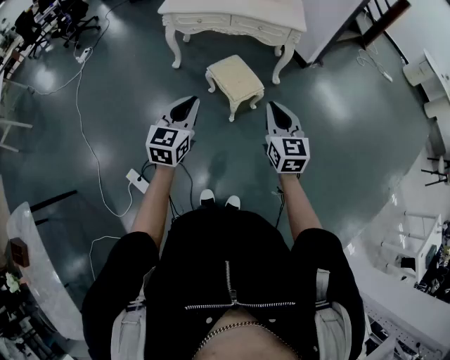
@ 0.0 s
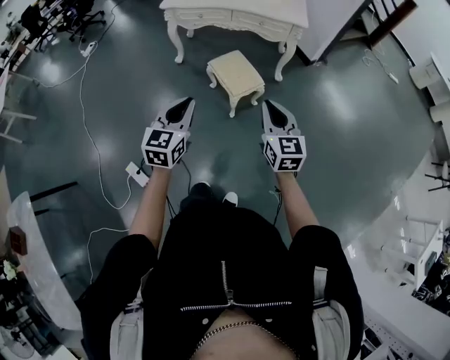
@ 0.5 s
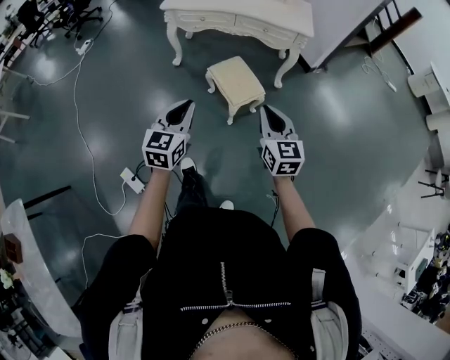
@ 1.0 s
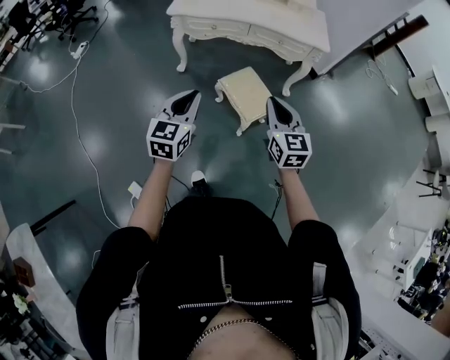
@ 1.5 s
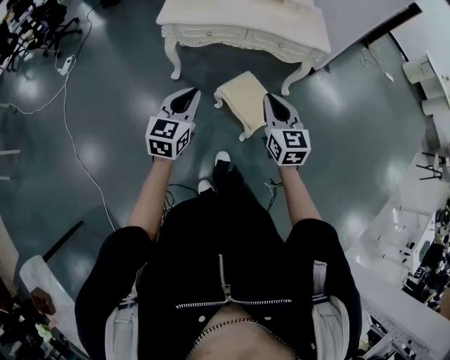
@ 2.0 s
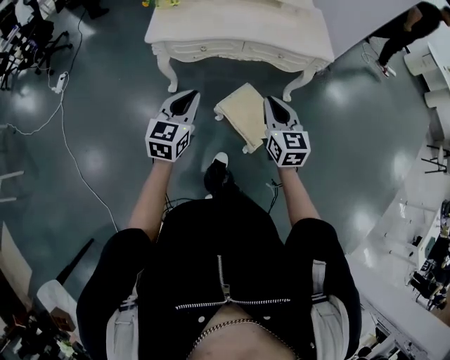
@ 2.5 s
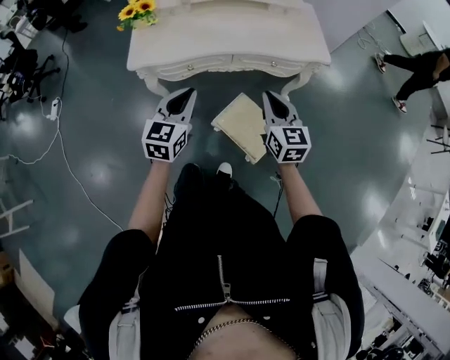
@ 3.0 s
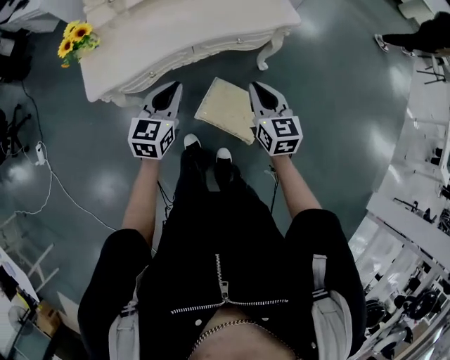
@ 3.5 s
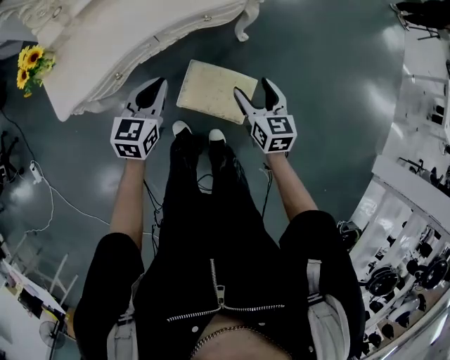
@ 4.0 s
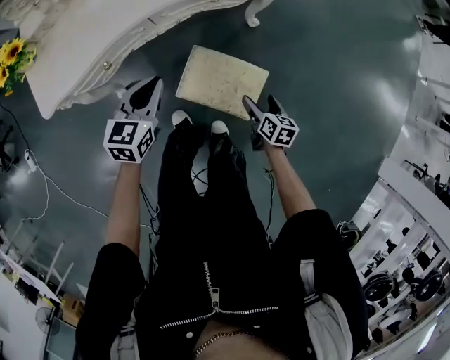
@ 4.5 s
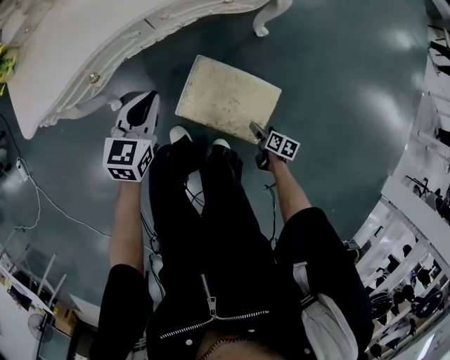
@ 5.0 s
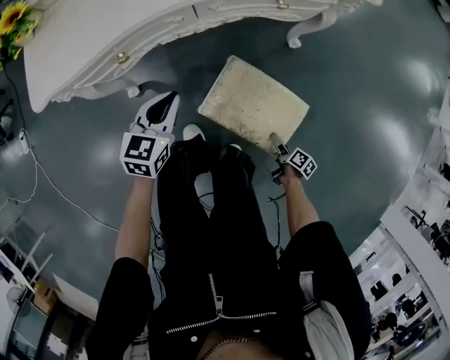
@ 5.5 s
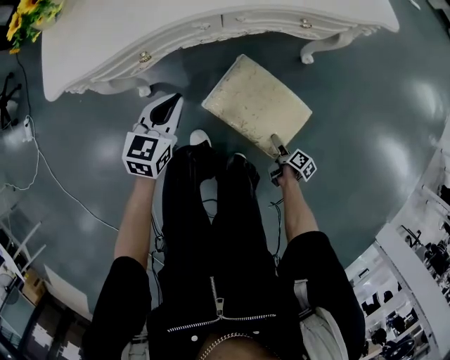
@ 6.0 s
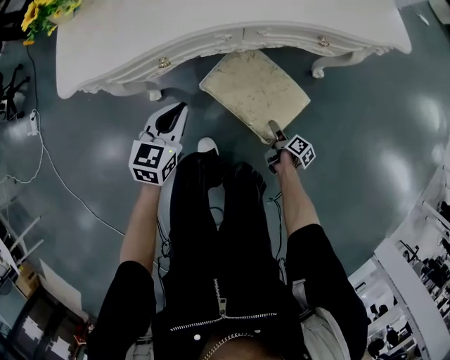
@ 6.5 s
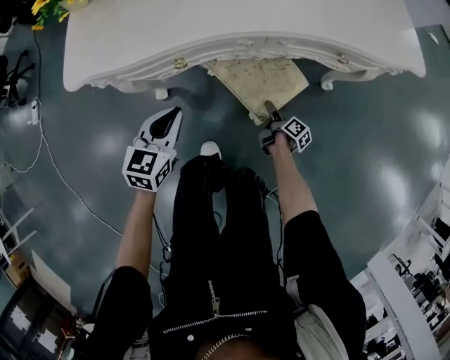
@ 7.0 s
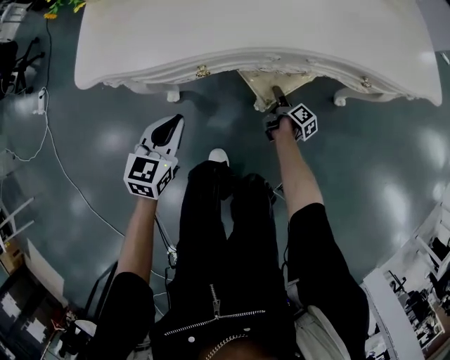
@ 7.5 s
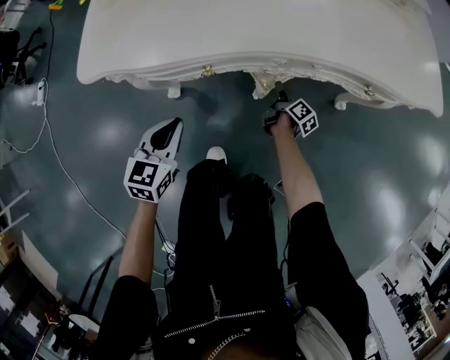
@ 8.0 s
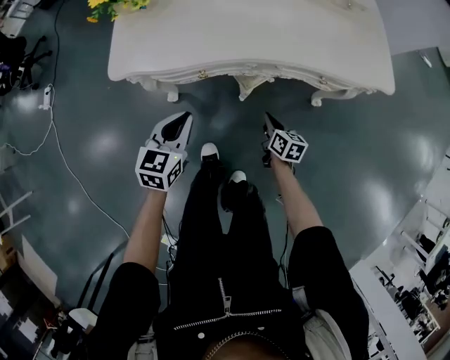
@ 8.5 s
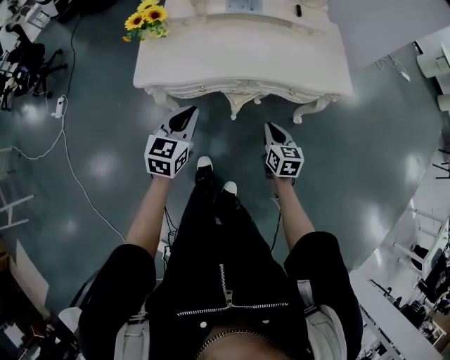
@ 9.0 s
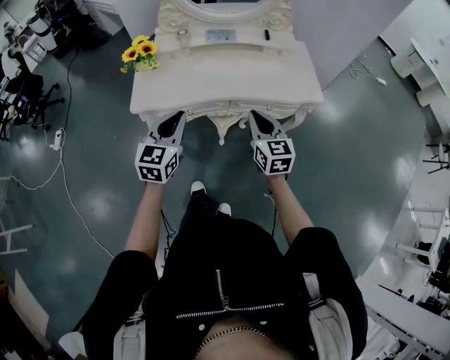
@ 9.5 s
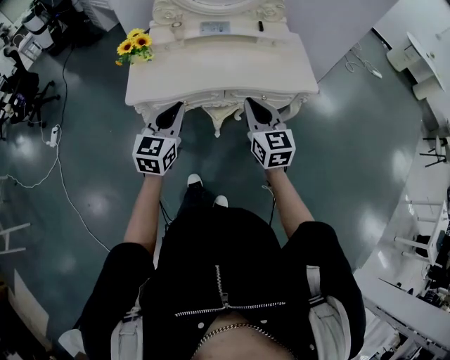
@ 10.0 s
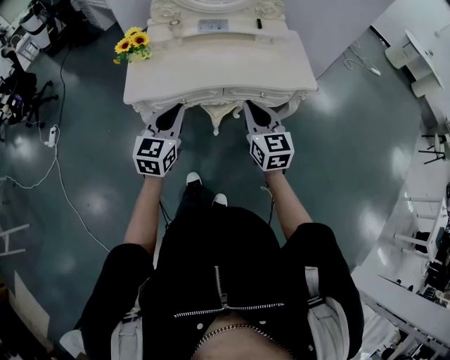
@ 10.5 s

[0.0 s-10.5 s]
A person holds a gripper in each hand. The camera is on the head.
0.0 to 2.0 s: Both grippers move forward and to the left, about 35 cm.
2.0 to 4.0 s: The left gripper shifts by about 40 cm, and changes its angle by approximately 40 degrees; the right gripper changes place by roughly 30 cm, turns by about 40 degrees, and opens its fingers.
4.0 to 6.5 s: The left gripper heads downward and to the left, covering roughly 30 cm, while the right gripper heads downward, covering roughly 50 cm, and rotates around the line of its fingers by about 60 degrees, clockwise from behind.
6.5 to 8.5 s: The right gripper is displaced upward, to the left and forward by about 30 cm, twists about 50 degrees counterclockwise, seen from behind, and closes. The left gripper shifts approximately 15 cm upward.
8.5 to 10.5 s: The left gripper shifts some 30 cm upward. The right gripper is displaced upward by some 50 cm, and turns by roughly 50 degrees.

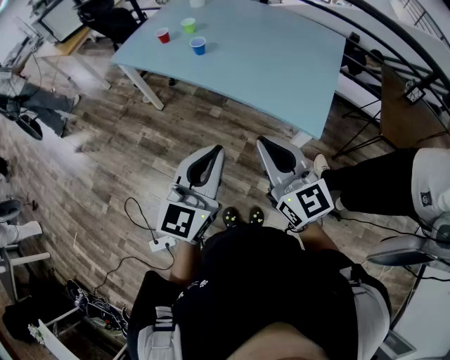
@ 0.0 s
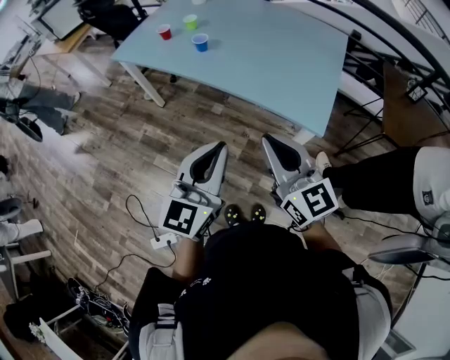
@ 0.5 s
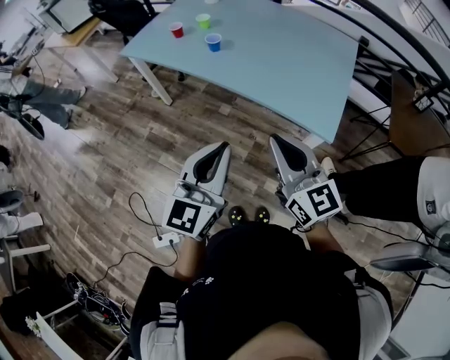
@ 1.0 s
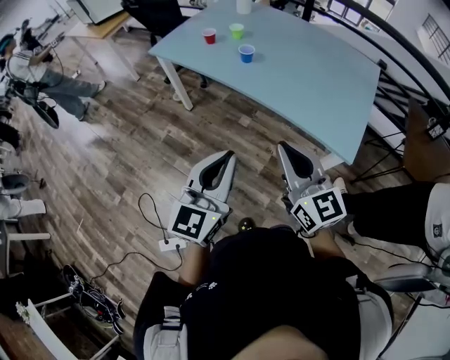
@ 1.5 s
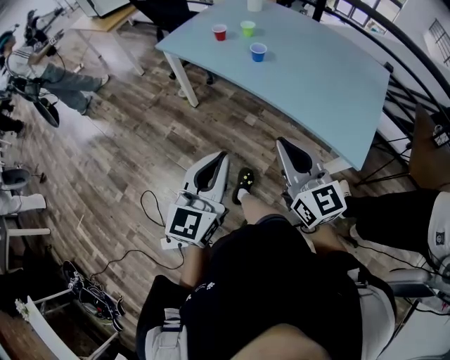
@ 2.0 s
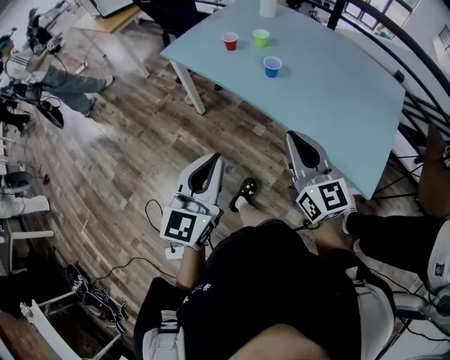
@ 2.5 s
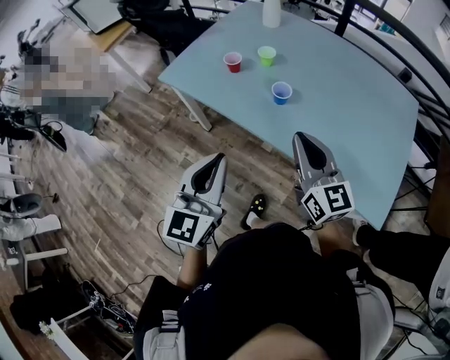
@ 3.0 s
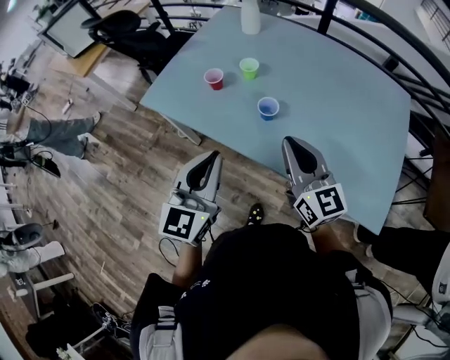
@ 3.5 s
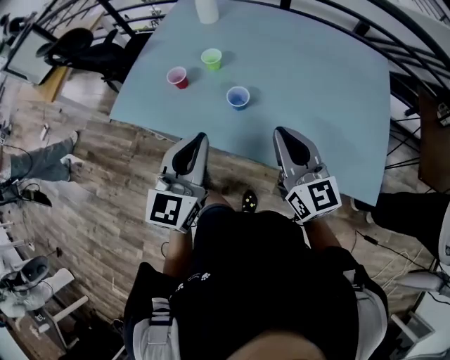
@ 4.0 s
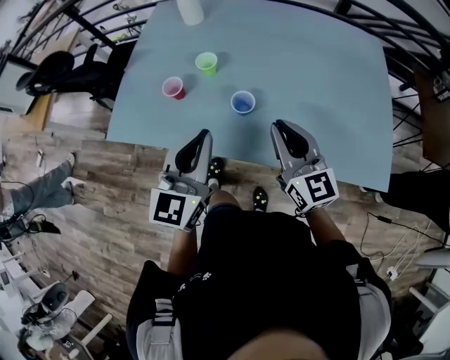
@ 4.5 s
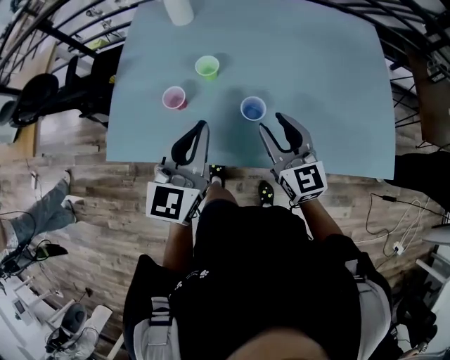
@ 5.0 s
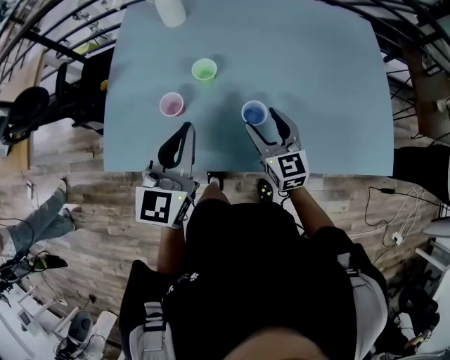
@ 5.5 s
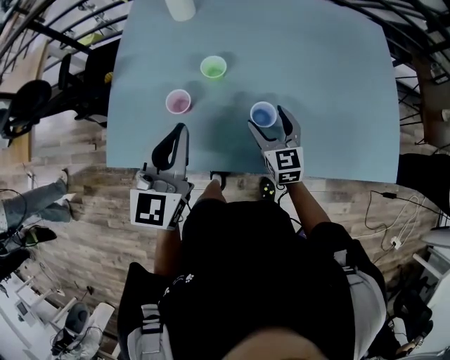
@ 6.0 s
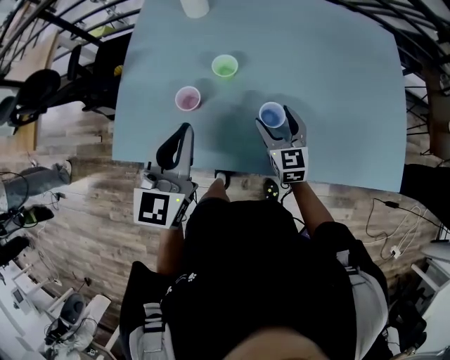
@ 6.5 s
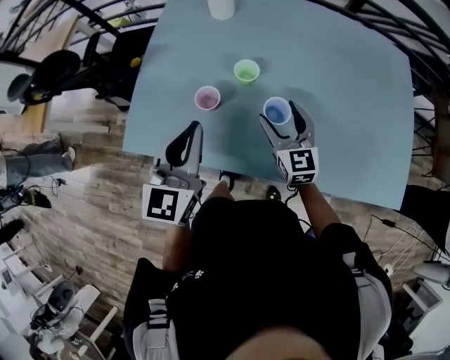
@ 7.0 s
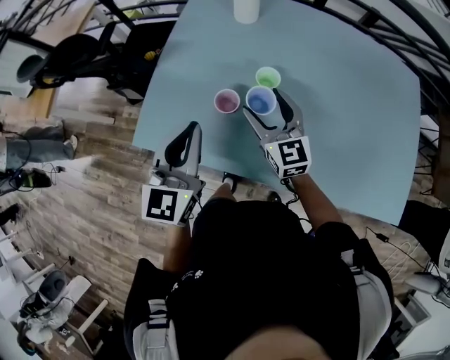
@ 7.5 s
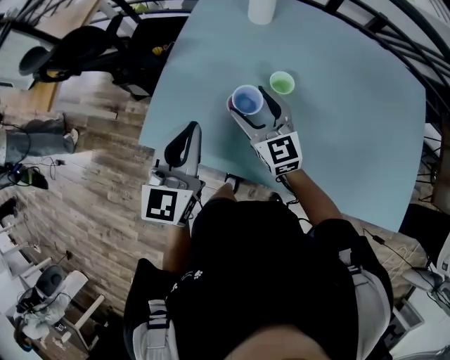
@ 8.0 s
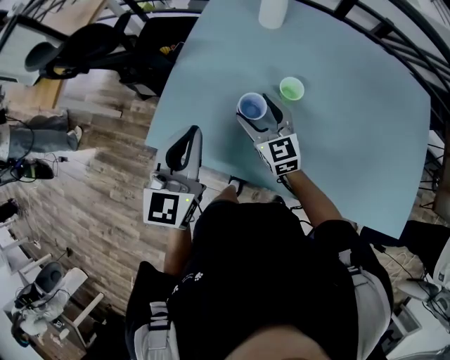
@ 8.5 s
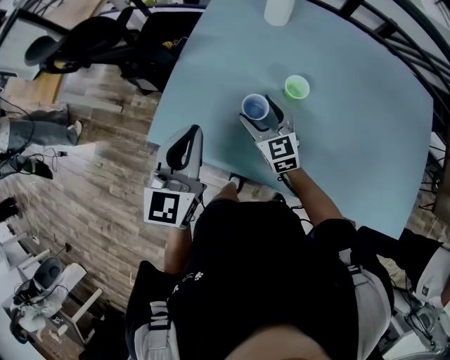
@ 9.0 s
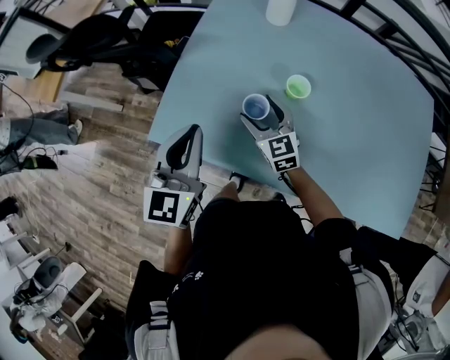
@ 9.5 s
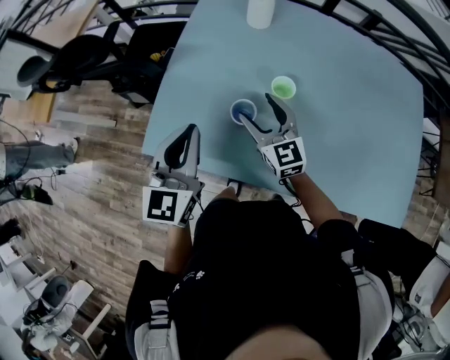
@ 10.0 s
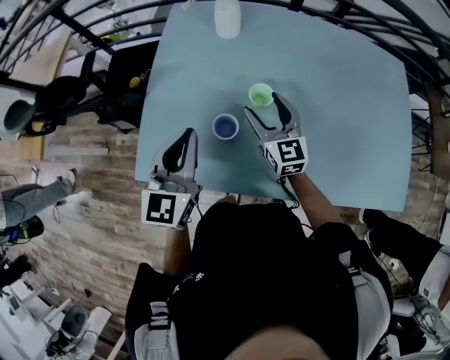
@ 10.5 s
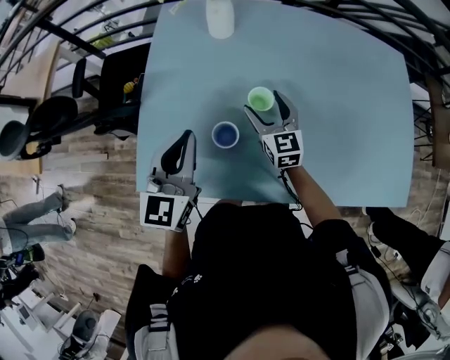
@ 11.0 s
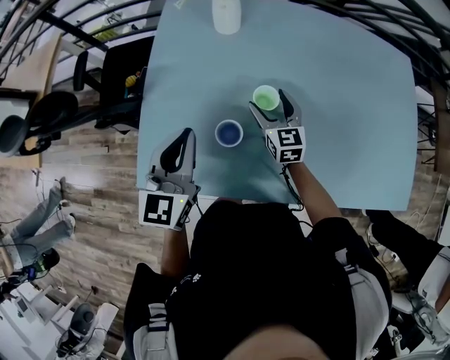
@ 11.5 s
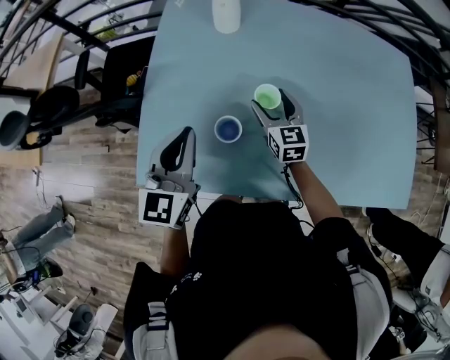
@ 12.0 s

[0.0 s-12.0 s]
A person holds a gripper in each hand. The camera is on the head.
0.0 to 2.0 s: The right gripper goes approximately 15 cm to the left and forward, while the left gripper is displaced to the left by about 15 cm.
2.0 to 4.0 s: The grippers both shift forward by roughly 40 cm. The right gripper swivels roughly 20 degrees.
4.0 to 6.0 s: The left gripper moves forward and to the left, about 25 cm; the right gripper moves downward, forward and to the left, approximately 30 cm, swivels some 30 degrees, and opens.
6.0 to 8.0 s: The left gripper heads to the left, covering approximately 15 cm. Meanwhile the right gripper heads to the left and upward, covering about 25 cm, and turns by roughly 30 degrees.
8.0 to 10.0 s: The right gripper moves approximately 10 cm downward and comes back.
10.0 to 12.0 s: The right gripper moves to the right, forward and downward, some 15 cm, and swivels roughly 20 degrees; the left gripper moves forward, some 5 cm.

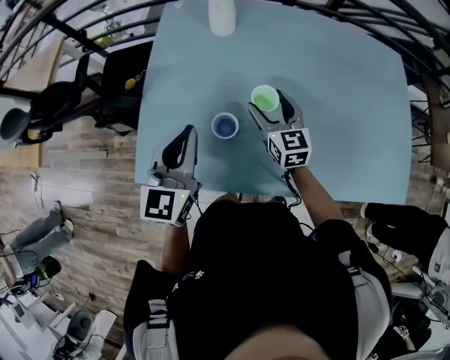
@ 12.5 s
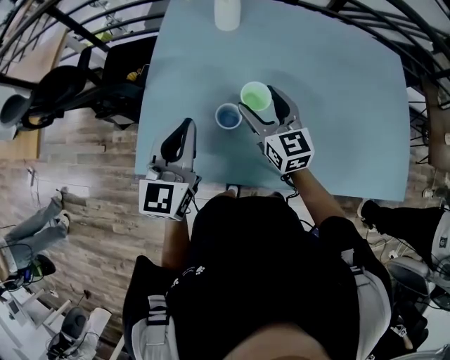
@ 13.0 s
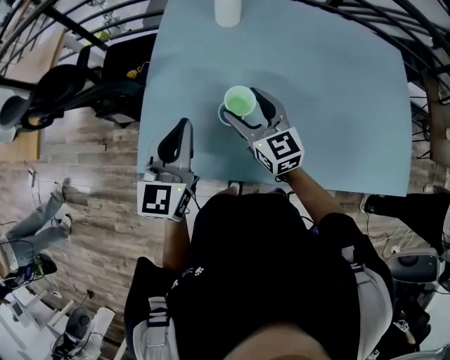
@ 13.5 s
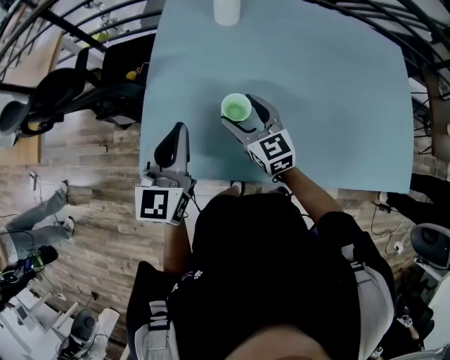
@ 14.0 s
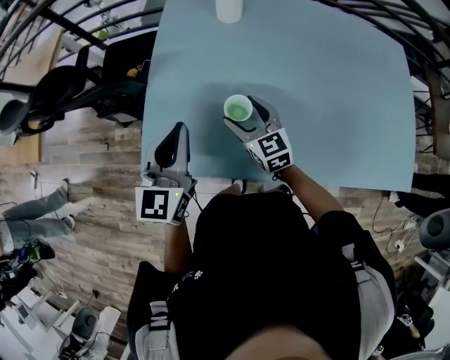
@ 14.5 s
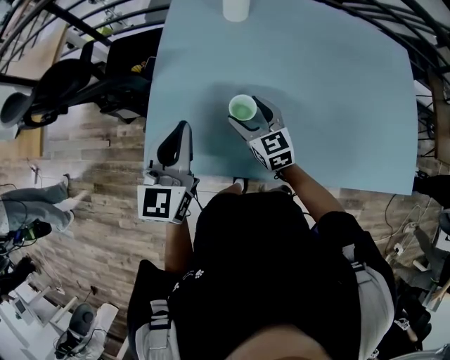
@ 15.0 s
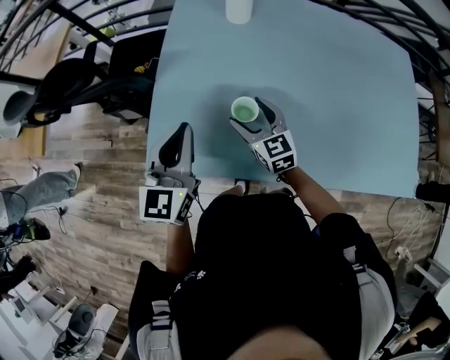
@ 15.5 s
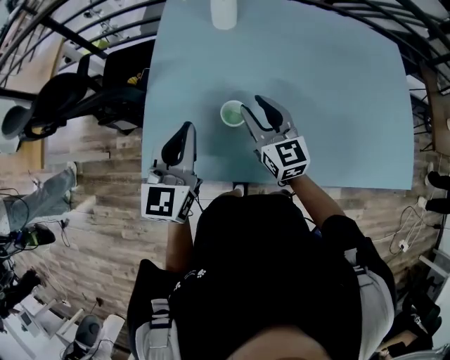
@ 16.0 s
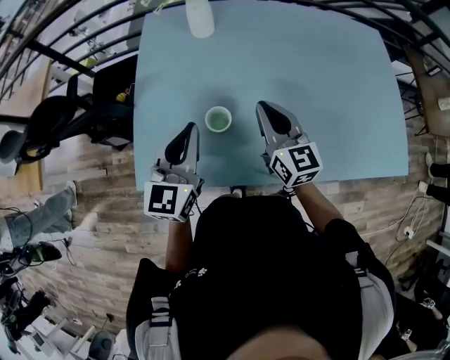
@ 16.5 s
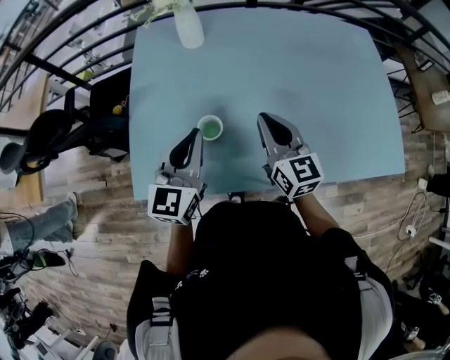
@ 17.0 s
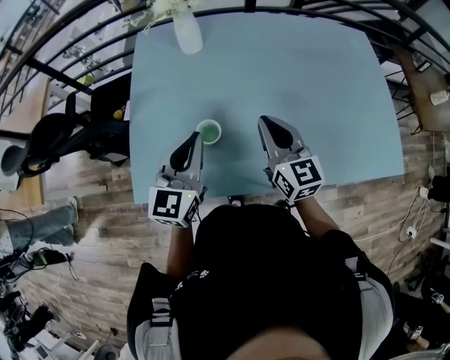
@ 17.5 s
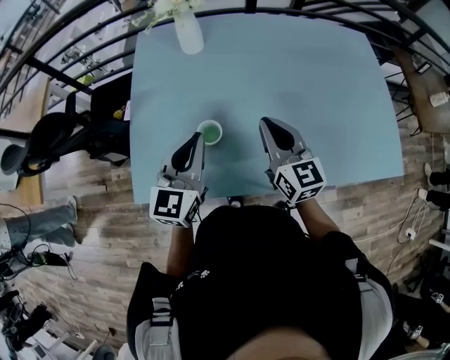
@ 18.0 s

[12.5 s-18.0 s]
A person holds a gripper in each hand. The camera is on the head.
12.5 to 14.5 s: The right gripper goes roughly 15 cm to the left and backward. Meanwhile the left gripper moves to the left, roughly 5 cm.
14.5 to 16.0 s: The right gripper moves upward, about 5 cm, and closes.
16.0 to 18.0 s: The right gripper travels to the right and upward by roughly 10 cm, and closes its fingers; the left gripper shifts about 10 cm to the right.
